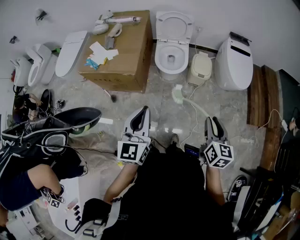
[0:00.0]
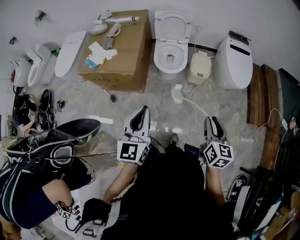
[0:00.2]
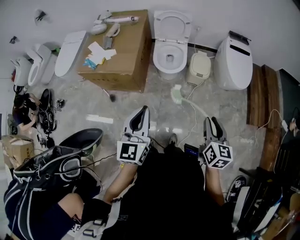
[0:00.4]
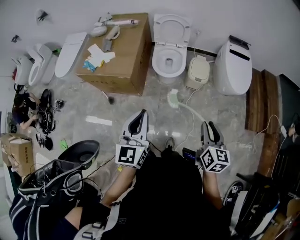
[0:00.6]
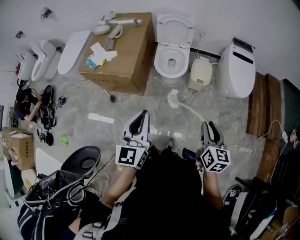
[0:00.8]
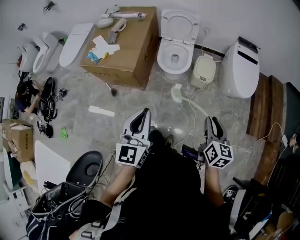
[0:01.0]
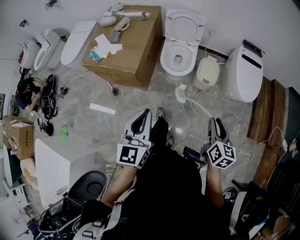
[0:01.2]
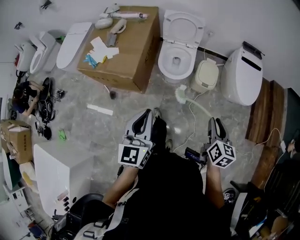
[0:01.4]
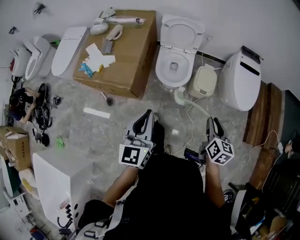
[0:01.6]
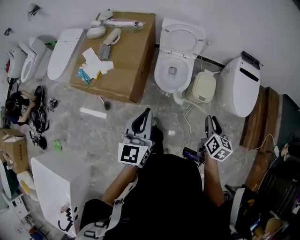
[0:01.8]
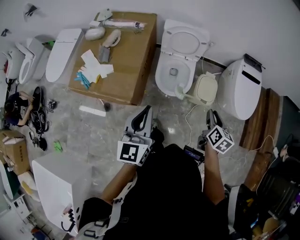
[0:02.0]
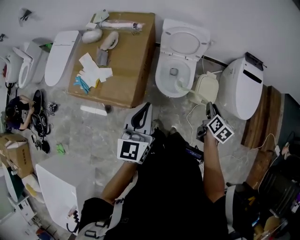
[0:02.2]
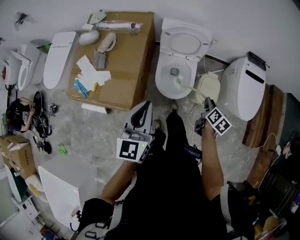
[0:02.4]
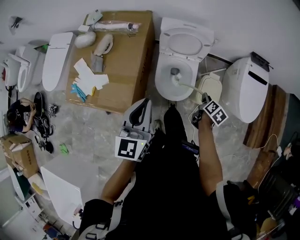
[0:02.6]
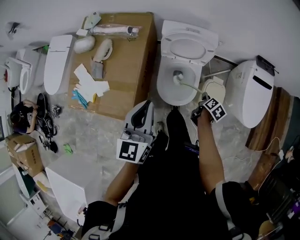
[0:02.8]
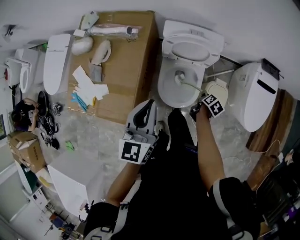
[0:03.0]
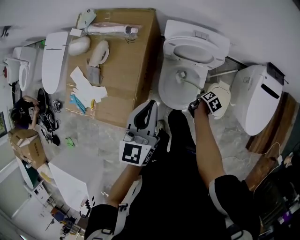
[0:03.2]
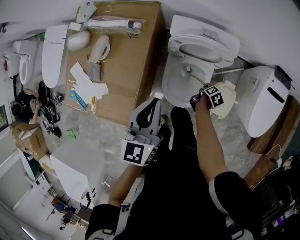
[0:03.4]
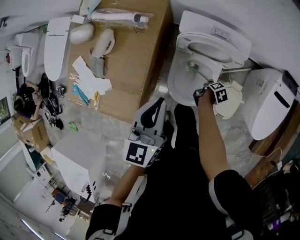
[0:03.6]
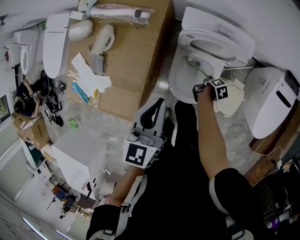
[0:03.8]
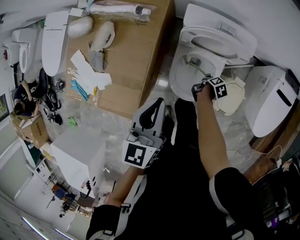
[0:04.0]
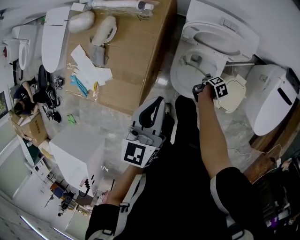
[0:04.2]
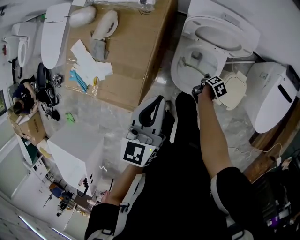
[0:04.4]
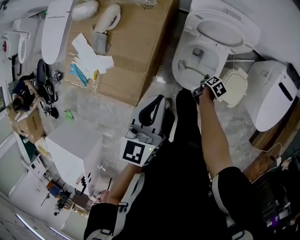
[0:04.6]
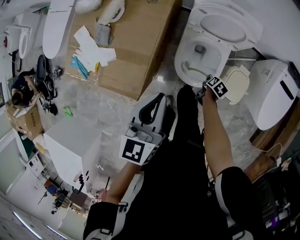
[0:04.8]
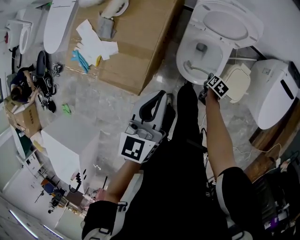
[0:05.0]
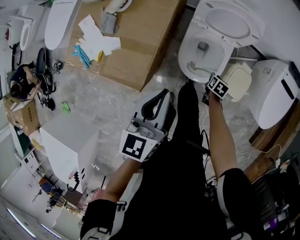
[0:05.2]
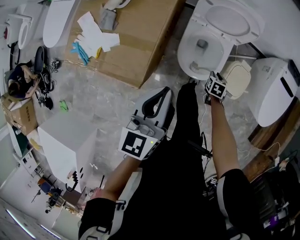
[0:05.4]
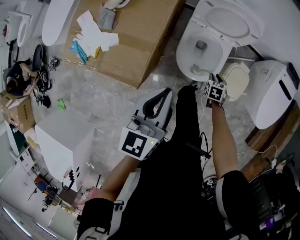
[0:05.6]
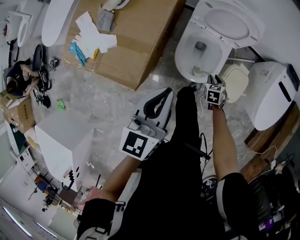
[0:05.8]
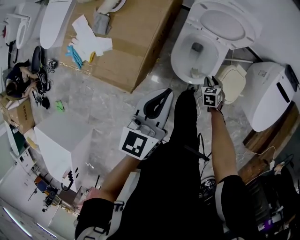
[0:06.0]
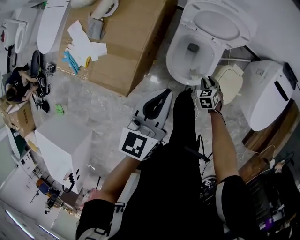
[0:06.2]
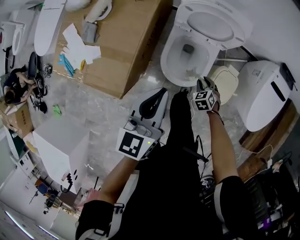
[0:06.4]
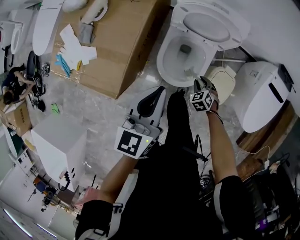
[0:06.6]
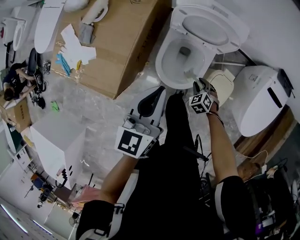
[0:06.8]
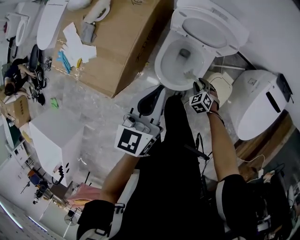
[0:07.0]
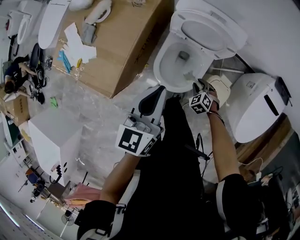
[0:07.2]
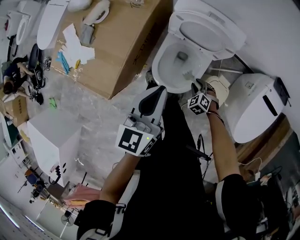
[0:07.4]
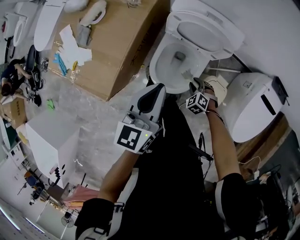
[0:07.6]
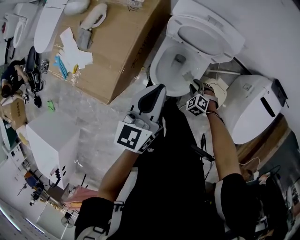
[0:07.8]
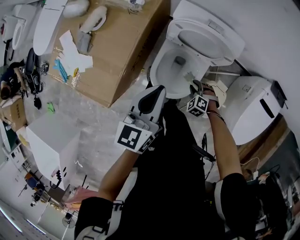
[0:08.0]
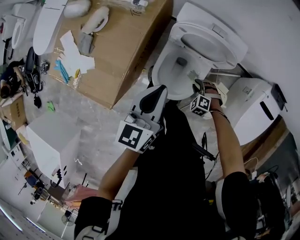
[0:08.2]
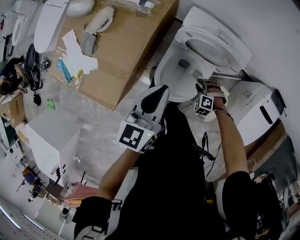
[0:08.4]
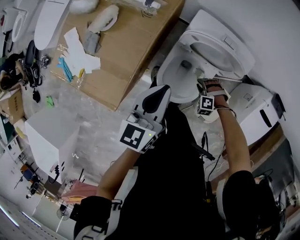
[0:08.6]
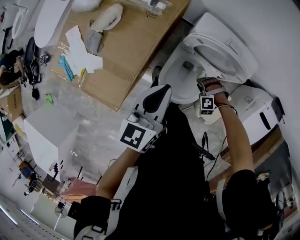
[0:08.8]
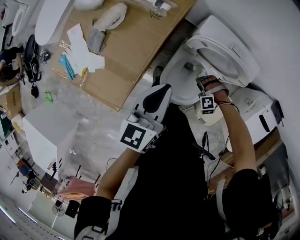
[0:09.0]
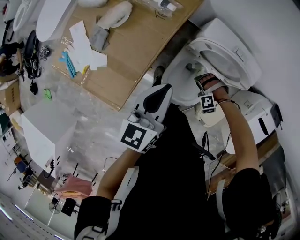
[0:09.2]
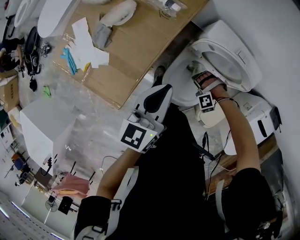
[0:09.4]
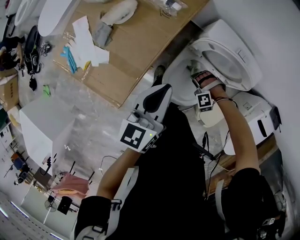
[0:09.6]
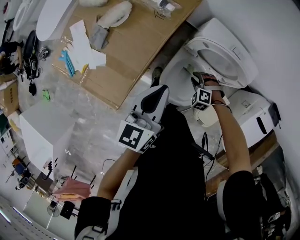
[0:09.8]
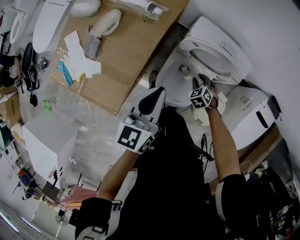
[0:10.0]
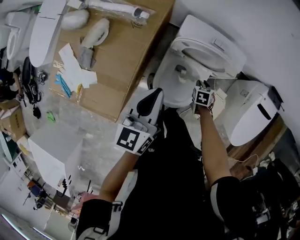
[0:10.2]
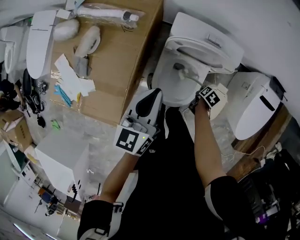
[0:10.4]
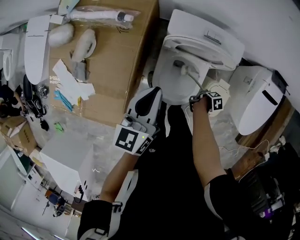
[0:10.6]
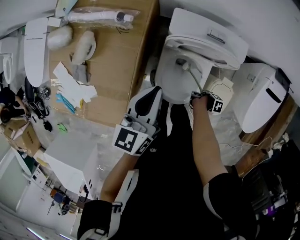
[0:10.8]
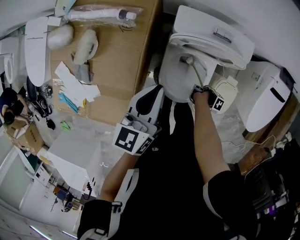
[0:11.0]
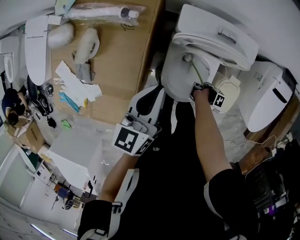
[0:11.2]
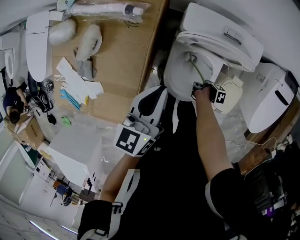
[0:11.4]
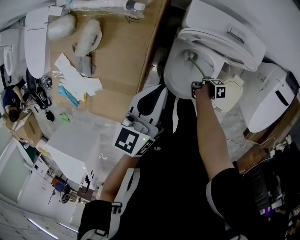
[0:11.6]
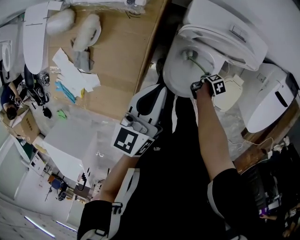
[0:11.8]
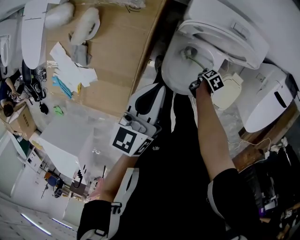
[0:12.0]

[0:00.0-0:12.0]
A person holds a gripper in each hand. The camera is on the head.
0.0 to 1.6 s: The grippers both shift forward by some 20 cm.
1.6 to 3.0 s: The two grippers travel together, forward, roughly 40 cm. The right gripper travels downward by roughly 30 cm, and turns by about 50 degrees.
3.0 to 4.4 s: The right gripper goes some 15 cm downward and to the left, while the left gripper is displaced downward by about 10 cm.
4.4 to 6.0 s: Both grippers travel together backward, some 10 cm. The right gripper rolls counterclockwise, seen from behind, by about 80 degrees.
6.0 to 7.6 s: The left gripper travels to the right and forward by approximately 15 cm. The right gripper is displaced forward by about 5 cm, and twists some 40 degrees counterclockwise, seen from behind.
7.6 to 9.0 s: The grippers both shift forward and to the left by roughly 15 cm. The right gripper rolls counterclockwise, seen from behind, by approximately 60 degrees.
9.0 to 10.4 s: The right gripper changes place by roughly 15 cm, and rolls clockwise, seen from behind, by some 170 degrees.
10.4 to 12.0 s: The left gripper shifts about 5 cm downward; the right gripper travels downward by about 10 cm.

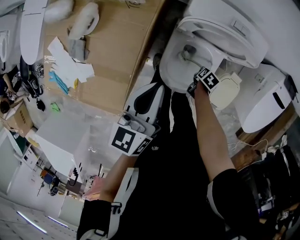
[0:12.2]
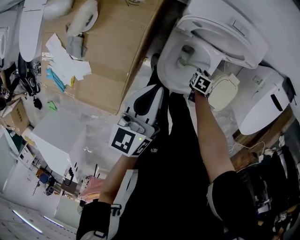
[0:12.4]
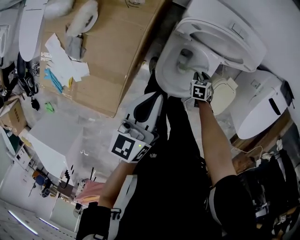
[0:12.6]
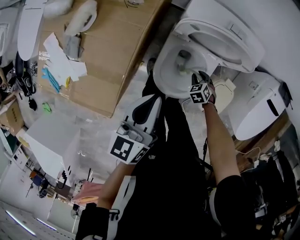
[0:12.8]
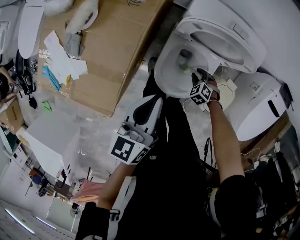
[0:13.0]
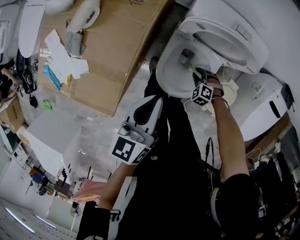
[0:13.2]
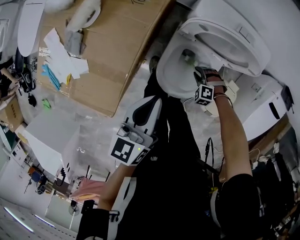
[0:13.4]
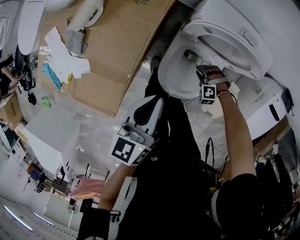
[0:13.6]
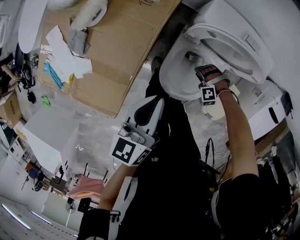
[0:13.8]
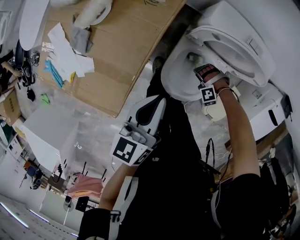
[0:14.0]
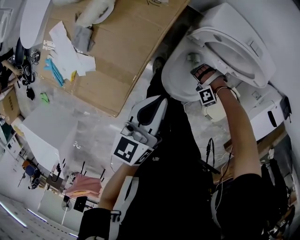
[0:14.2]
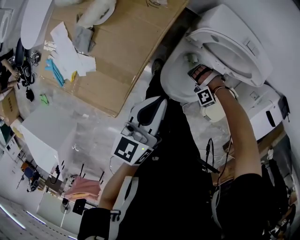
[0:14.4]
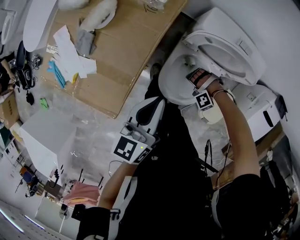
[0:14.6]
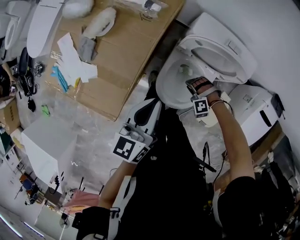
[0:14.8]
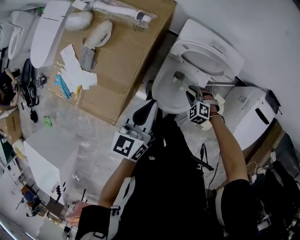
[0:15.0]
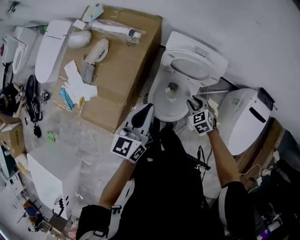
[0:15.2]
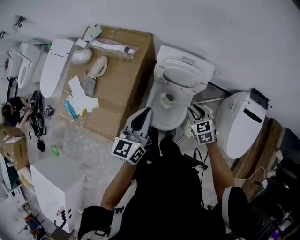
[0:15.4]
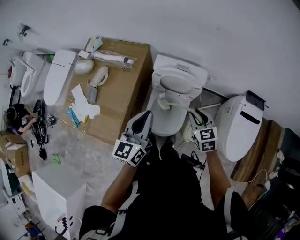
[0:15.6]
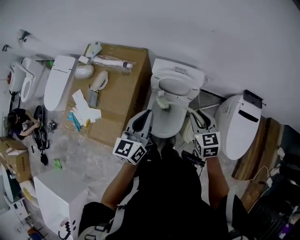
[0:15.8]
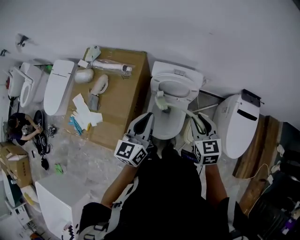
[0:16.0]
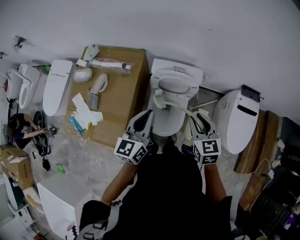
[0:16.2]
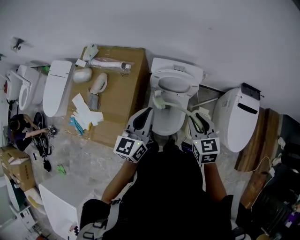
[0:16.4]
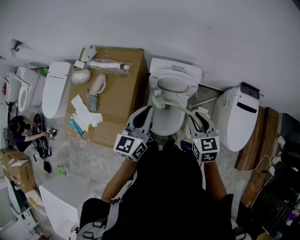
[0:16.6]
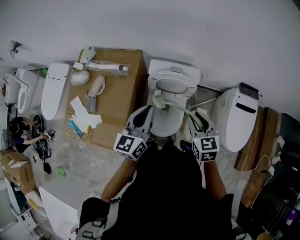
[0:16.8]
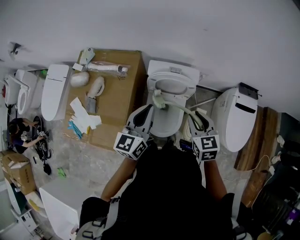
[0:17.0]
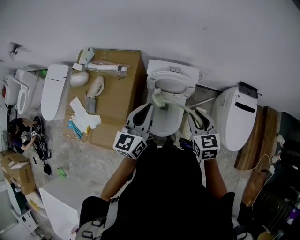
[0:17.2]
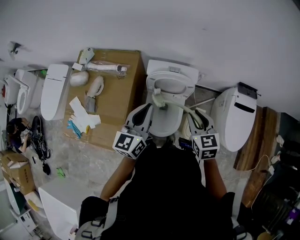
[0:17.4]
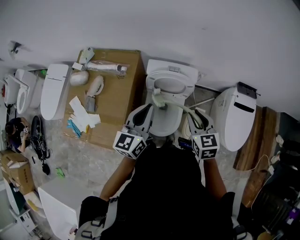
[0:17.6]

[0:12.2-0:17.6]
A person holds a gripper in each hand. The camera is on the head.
12.2 to 13.6 s: The right gripper changes place by approximately 10 cm, and rotates around the line of its fingers by approximately 140 degrees, counterclockwise from behind. Meanwhile the left gripper moves about 5 cm.
13.6 to 15.0 s: The left gripper goes approximately 10 cm upward. The right gripper is displaced upward by approximately 15 cm, and rotates some 30 degrees.
15.0 to 16.2 s: The right gripper shifts some 40 cm upward, and rotates around the line of its fingers by approximately 60 degrees, clockwise from behind, while the left gripper moves upward and to the right, some 15 cm.
16.2 to 17.6 s: The grippers make only small movements.

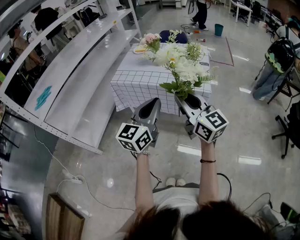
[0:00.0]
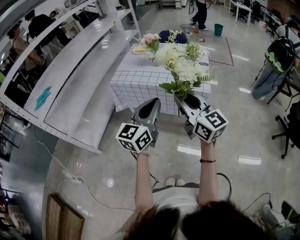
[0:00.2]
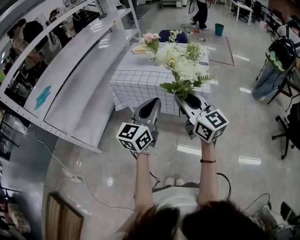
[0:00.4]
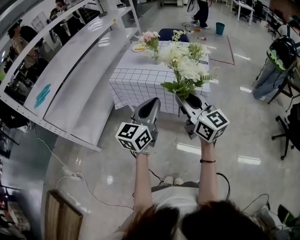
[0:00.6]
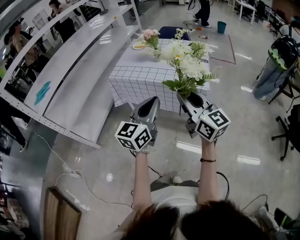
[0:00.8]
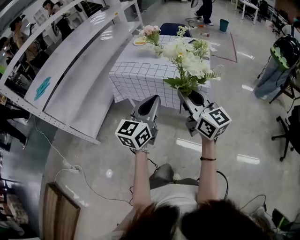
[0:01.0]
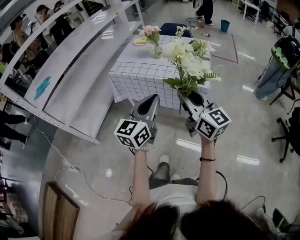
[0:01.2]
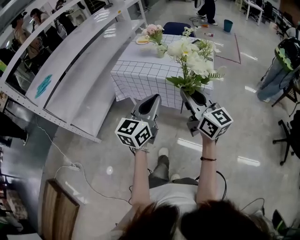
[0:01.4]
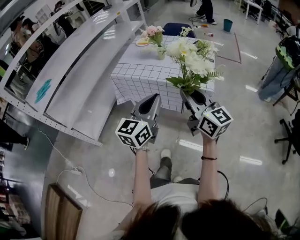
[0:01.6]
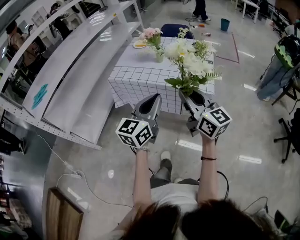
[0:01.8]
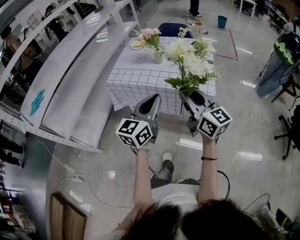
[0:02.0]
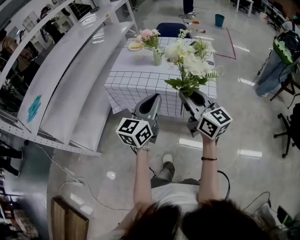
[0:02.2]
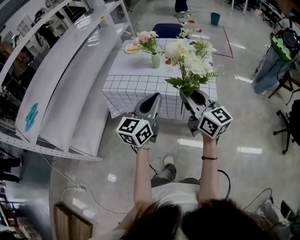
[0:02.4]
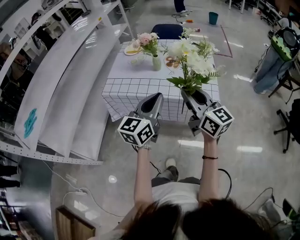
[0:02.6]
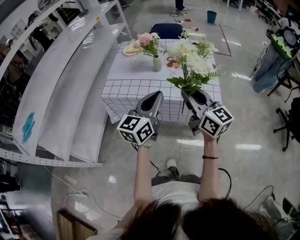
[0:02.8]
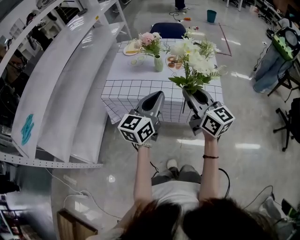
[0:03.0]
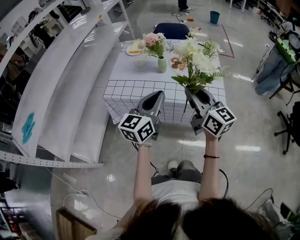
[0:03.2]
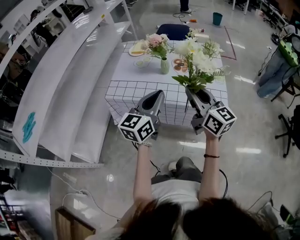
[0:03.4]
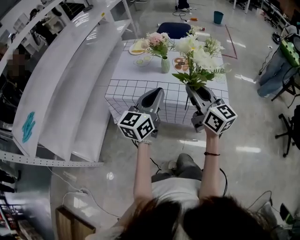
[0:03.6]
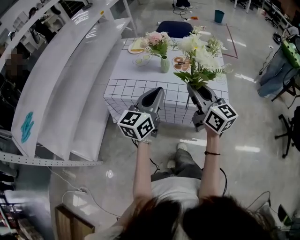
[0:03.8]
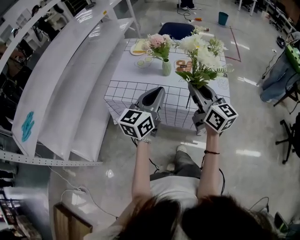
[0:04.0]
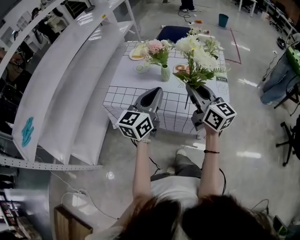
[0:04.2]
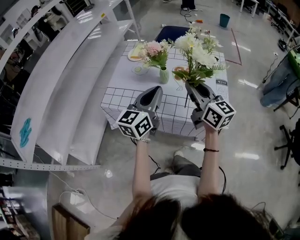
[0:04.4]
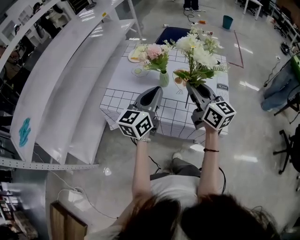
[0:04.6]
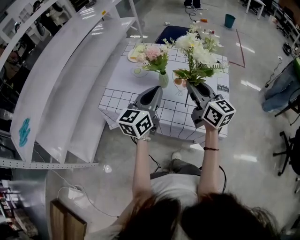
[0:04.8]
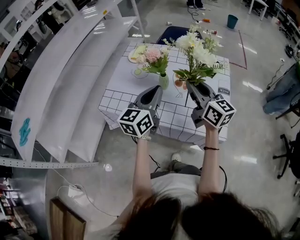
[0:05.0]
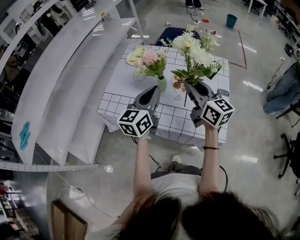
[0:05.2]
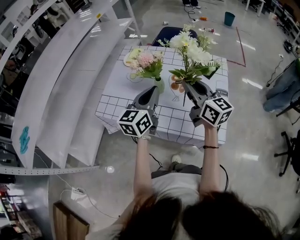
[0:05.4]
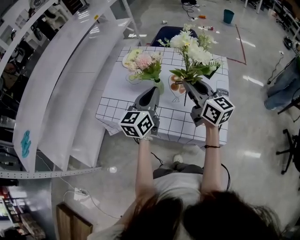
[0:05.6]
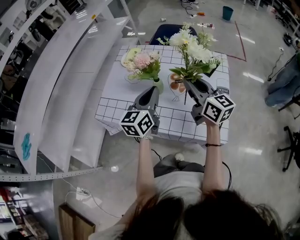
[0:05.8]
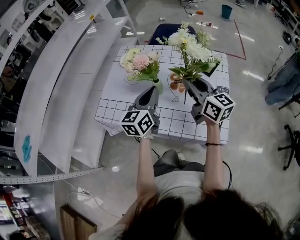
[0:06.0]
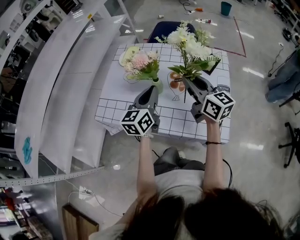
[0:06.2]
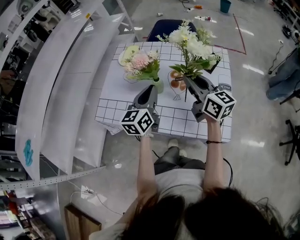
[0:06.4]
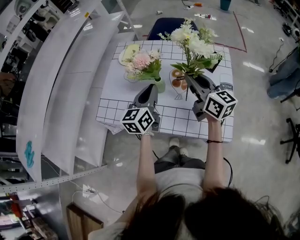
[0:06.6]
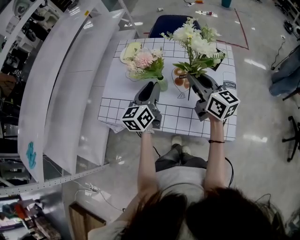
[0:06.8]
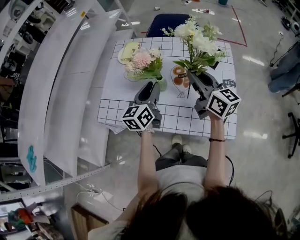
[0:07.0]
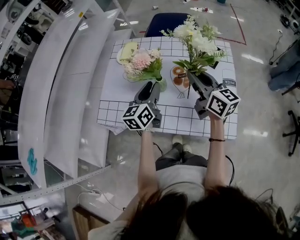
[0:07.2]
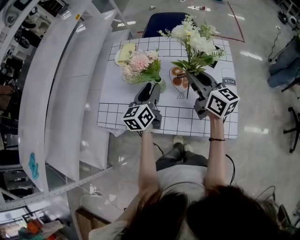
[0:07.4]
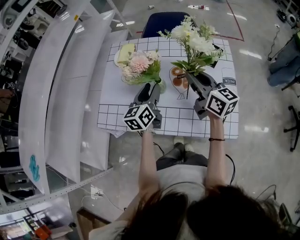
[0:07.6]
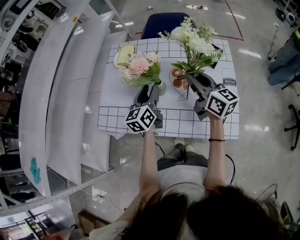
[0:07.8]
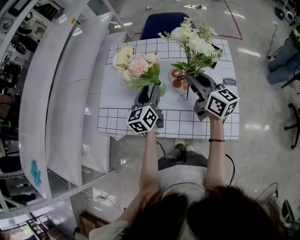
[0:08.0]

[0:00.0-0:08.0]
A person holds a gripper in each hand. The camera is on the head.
0.0 to 1.6 s: The right gripper ends up roughly 5 cm from where it was.
1.6 to 3.2 s: The grippers both shift forward by some 20 cm.
3.2 to 4.8 s: The grippers both shift forward by approximately 20 cm.
4.8 to 6.4 s: The left gripper heads forward and downward, covering about 10 cm. Meanwhile the right gripper shifts about 10 cm forward.
6.4 to 8.0 s: The left gripper goes roughly 10 cm downward and forward, and opens its fingers, while the right gripper moves roughly 5 cm.
